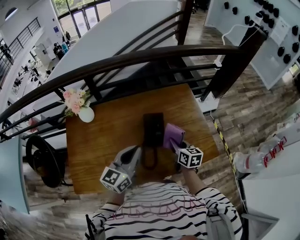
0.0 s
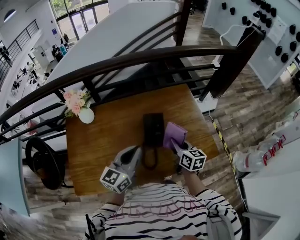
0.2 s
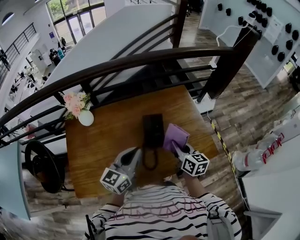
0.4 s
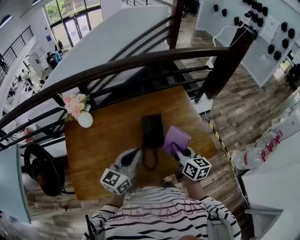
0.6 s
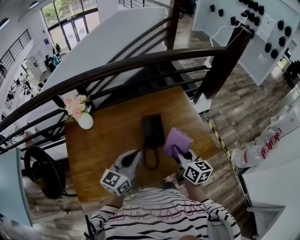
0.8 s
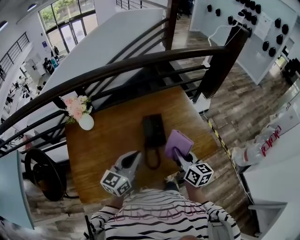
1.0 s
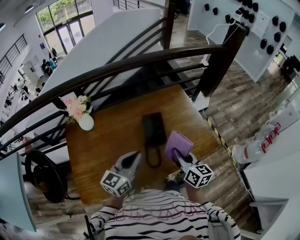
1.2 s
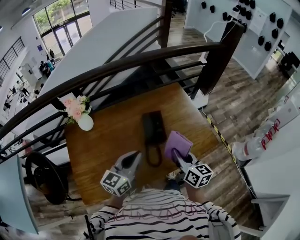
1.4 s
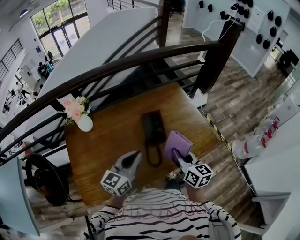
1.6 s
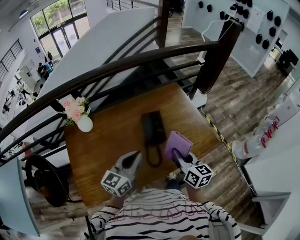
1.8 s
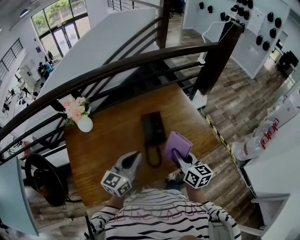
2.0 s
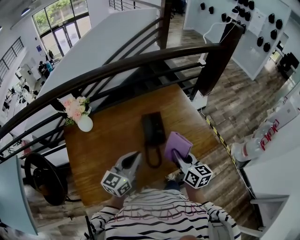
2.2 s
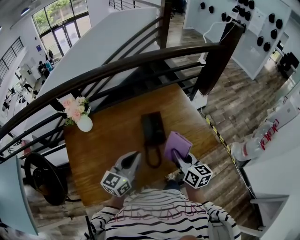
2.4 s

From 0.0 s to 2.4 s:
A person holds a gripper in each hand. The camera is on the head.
From 0.0 s to 1.2 s: The right gripper shifts some 15 cm backward and upward. The left gripper is displaced backward by about 5 cm.
From 1.2 s to 2.4 s: The two grippers keep their place.

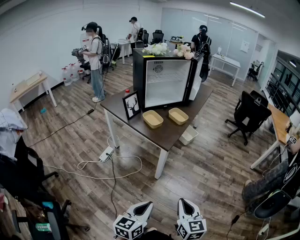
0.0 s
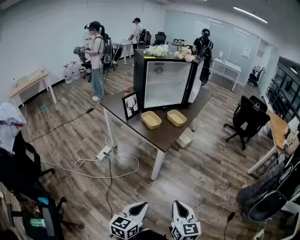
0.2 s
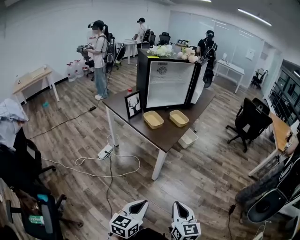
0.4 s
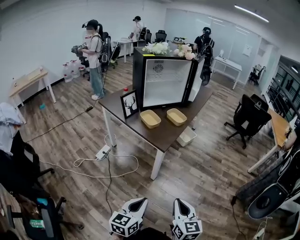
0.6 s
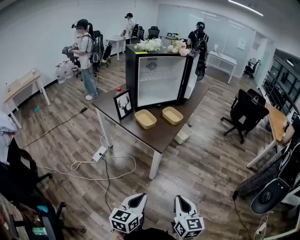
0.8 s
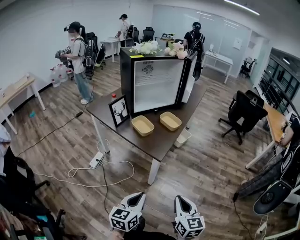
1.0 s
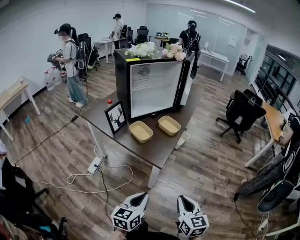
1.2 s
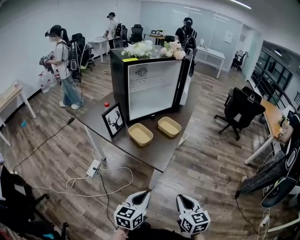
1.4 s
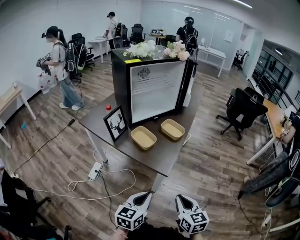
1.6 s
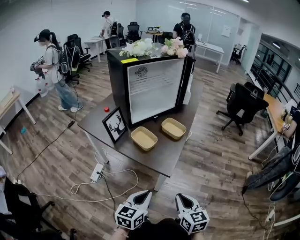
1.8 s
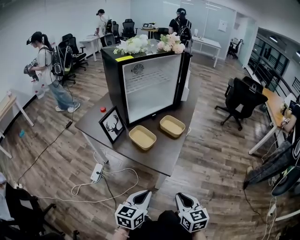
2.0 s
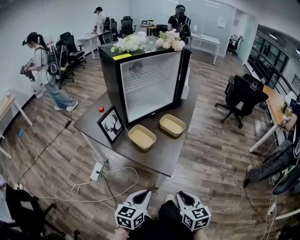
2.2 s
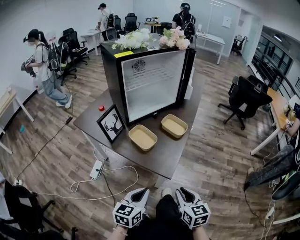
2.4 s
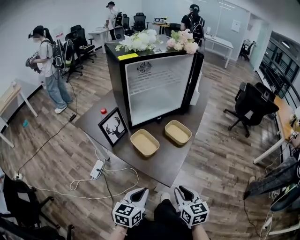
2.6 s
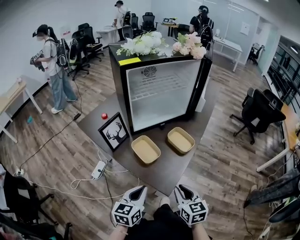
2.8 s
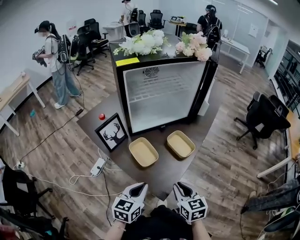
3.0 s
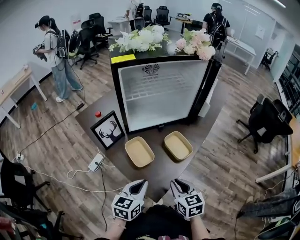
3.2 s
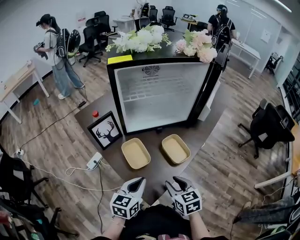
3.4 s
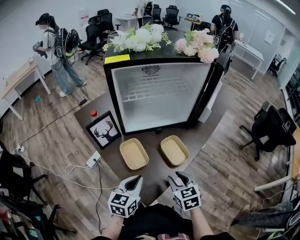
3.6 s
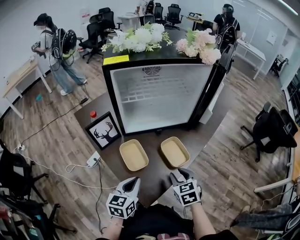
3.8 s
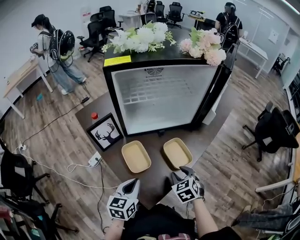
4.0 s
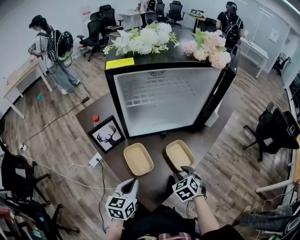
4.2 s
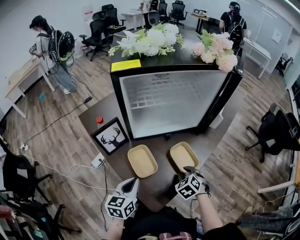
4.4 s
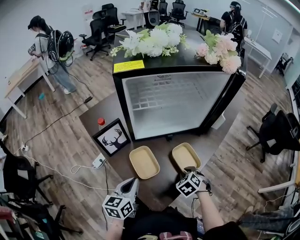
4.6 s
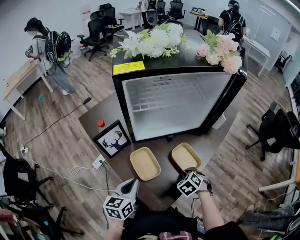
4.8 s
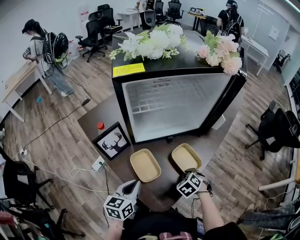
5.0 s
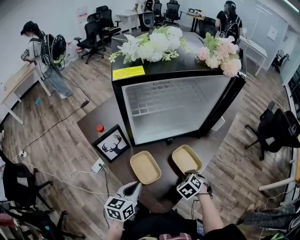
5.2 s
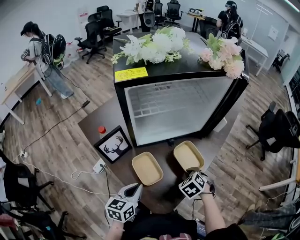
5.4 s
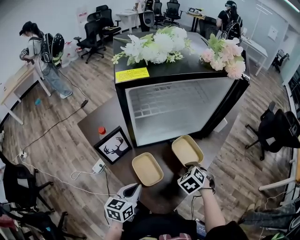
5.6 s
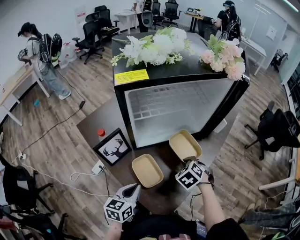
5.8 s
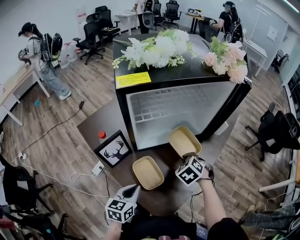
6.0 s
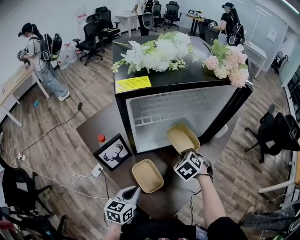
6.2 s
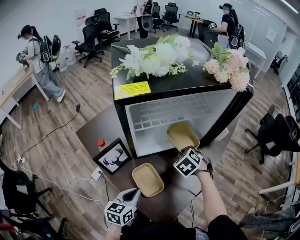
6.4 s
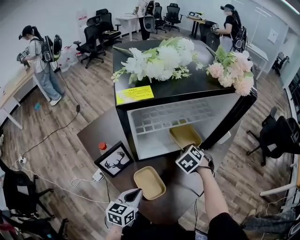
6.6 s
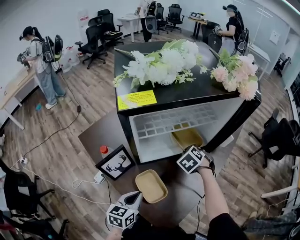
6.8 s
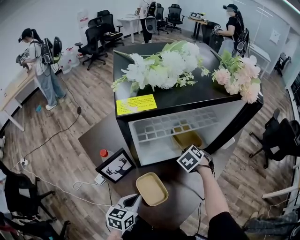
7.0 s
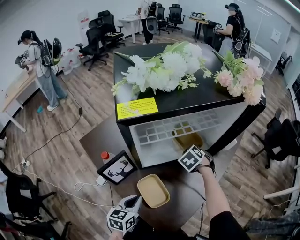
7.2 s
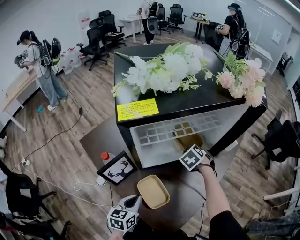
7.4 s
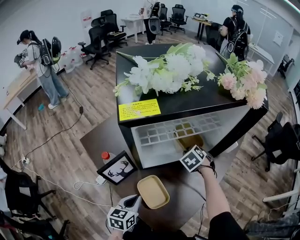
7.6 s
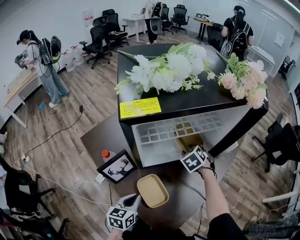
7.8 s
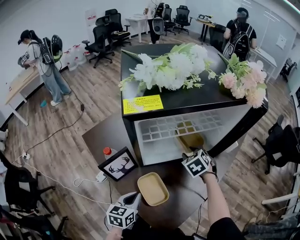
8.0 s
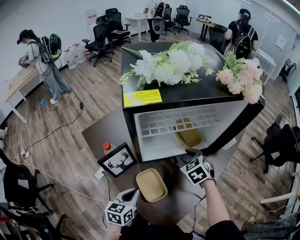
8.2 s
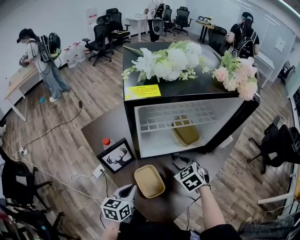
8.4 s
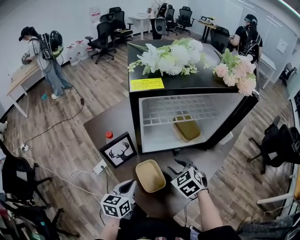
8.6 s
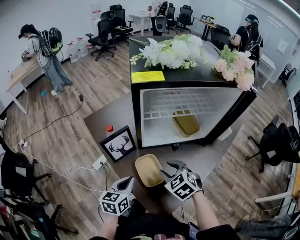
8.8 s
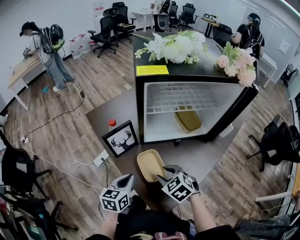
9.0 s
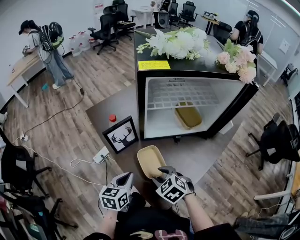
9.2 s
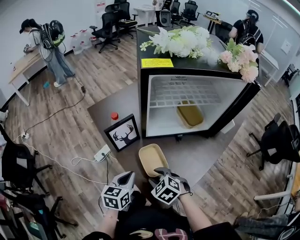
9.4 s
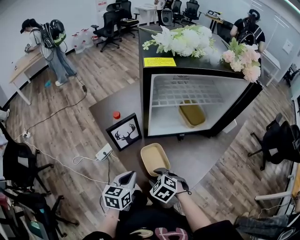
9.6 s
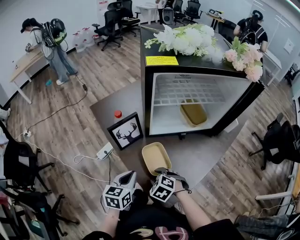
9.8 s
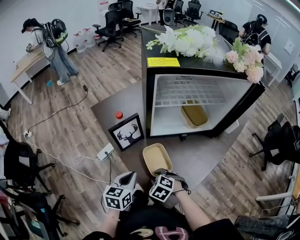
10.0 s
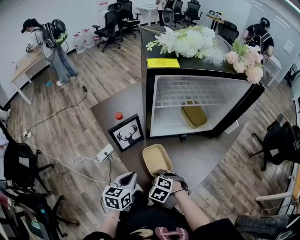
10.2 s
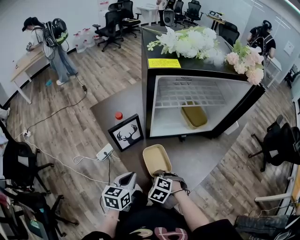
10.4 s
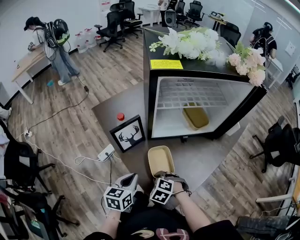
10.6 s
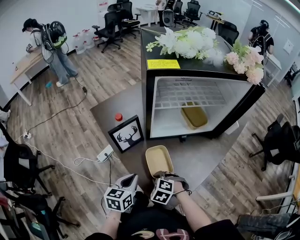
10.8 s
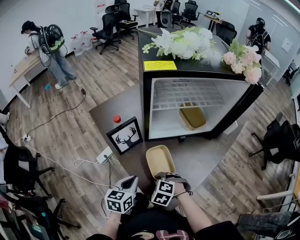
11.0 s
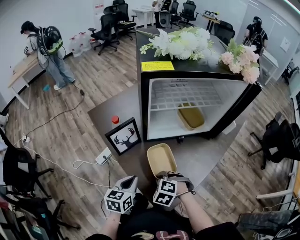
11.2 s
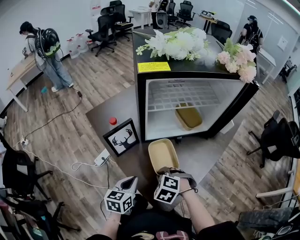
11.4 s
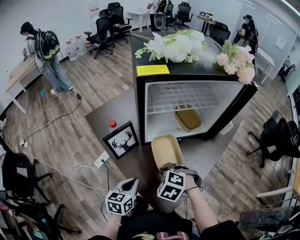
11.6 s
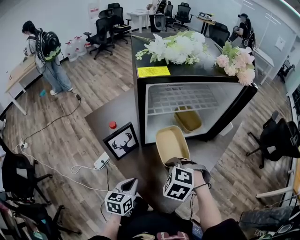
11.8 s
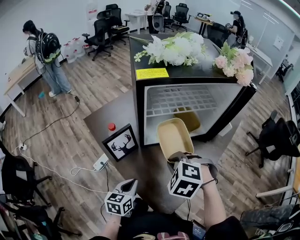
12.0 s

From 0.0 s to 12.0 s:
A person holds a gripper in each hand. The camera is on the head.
From 0.0 s to 1.6 s: Both grippers travel together forward, some 25 cm.
From 1.6 s to 3.0 s: The grippers both shift forward by roughly 25 cm.
From 3.0 s to 4.4 s: The left gripper shifts roughly 10 cm forward. Meanwhile the right gripper shifts some 20 cm forward and downward, and rotates roughly 50 degrees.
From 4.4 s to 6.0 s: The right gripper is displaced forward, upward and to the left by approximately 15 cm.
From 6.0 s to 7.6 s: The right gripper is displaced forward by approximately 15 cm, while the left gripper changes place by roughly 5 cm.
From 7.6 s to 9.0 s: The left gripper moves about 5 cm; the right gripper moves about 30 cm, and rotates roughly 30 degrees.
From 9.0 s to 10.4 s: The right gripper goes roughly 10 cm downward and to the left, and turns by roughly 30 degrees.
From 10.4 s to 12.0 s: The right gripper travels upward by about 20 cm.

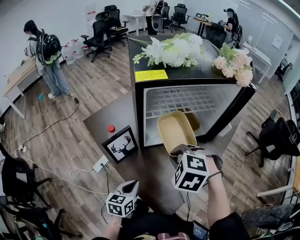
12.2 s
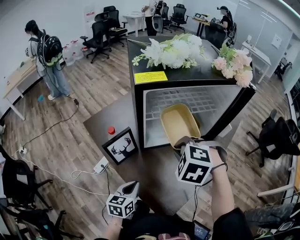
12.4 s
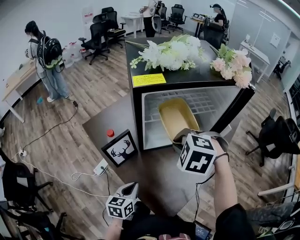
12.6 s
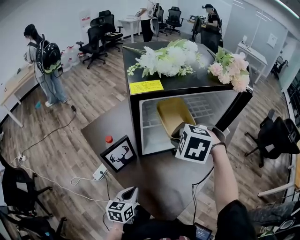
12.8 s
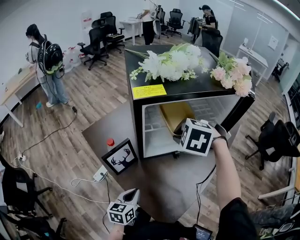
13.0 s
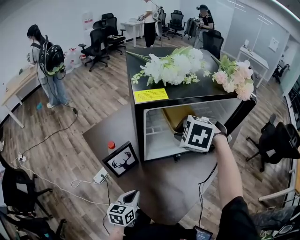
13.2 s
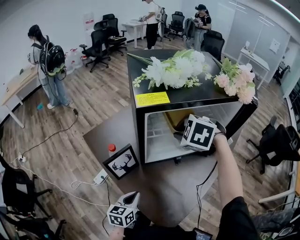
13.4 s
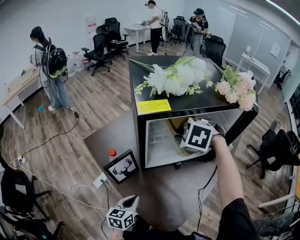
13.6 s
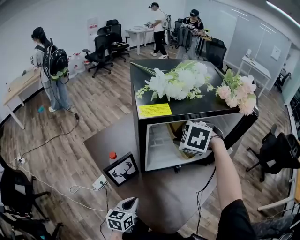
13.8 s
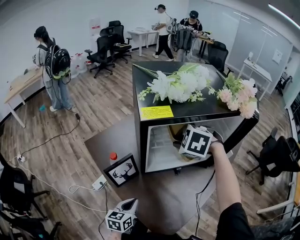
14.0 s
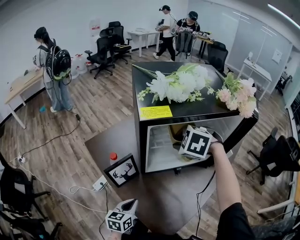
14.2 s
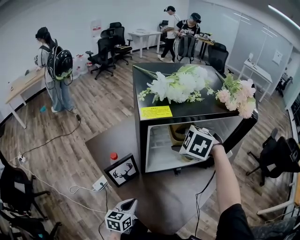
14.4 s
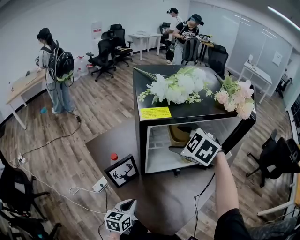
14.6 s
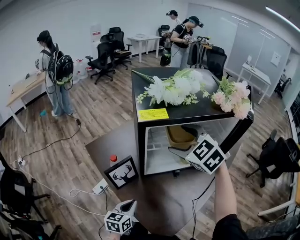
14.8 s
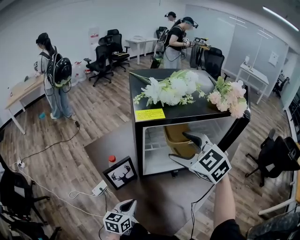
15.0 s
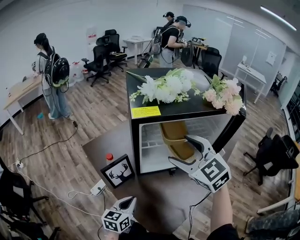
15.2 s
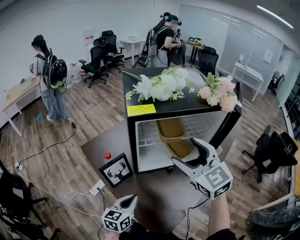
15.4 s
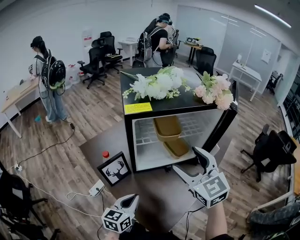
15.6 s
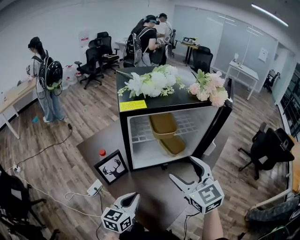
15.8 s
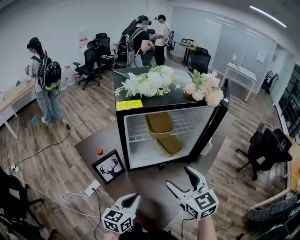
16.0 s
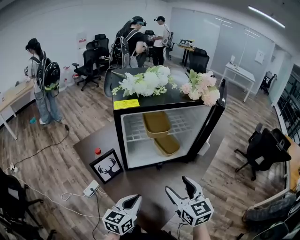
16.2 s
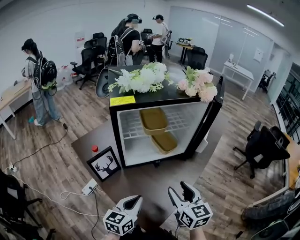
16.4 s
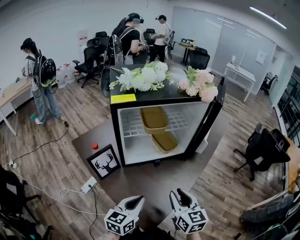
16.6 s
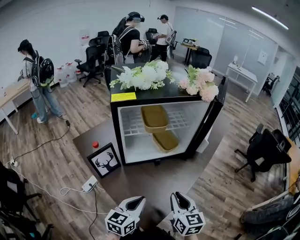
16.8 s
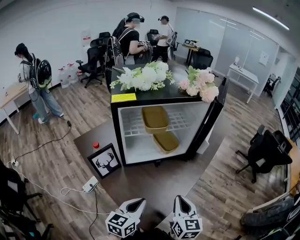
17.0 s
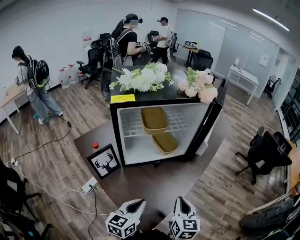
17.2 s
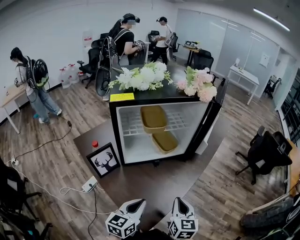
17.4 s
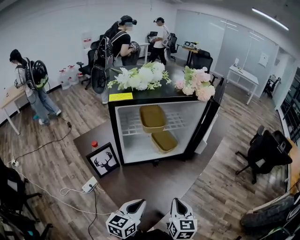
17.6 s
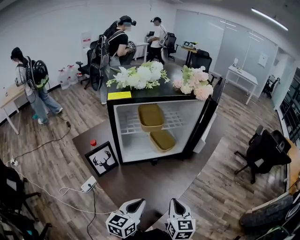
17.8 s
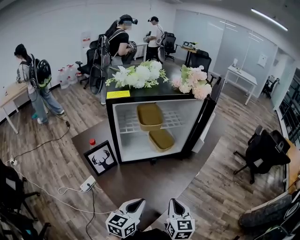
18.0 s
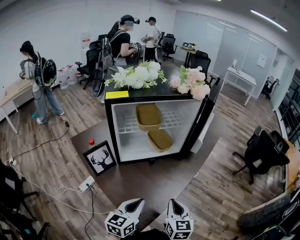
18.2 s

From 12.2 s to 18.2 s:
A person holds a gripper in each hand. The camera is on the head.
From 12.2 s to 13.8 s: The right gripper goes some 15 cm forward.
From 13.8 s to 15.2 s: The right gripper is displaced upward and backward by some 15 cm, angles its fingers upward, by approximately 50 degrees, and opens up. Meanwhile the left gripper travels upward by about 5 cm.
From 15.2 s to 16.6 s: The left gripper shifts approximately 15 cm to the right and backward, while the right gripper moves backward, downward and to the right, some 25 cm, turns by approximately 40 degrees, and closes up.
From 16.6 s to 18.2 s: The right gripper travels downward by roughly 5 cm.

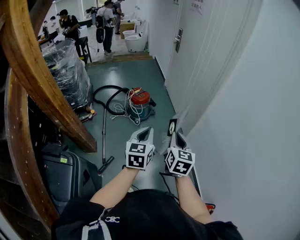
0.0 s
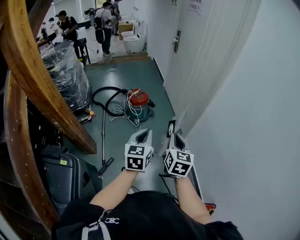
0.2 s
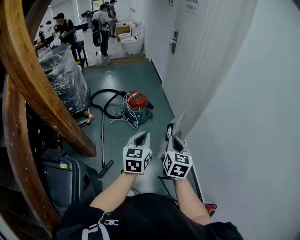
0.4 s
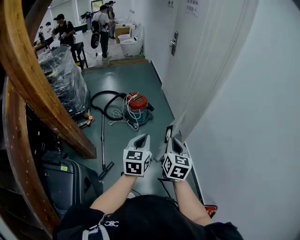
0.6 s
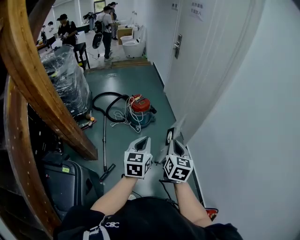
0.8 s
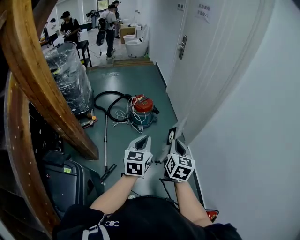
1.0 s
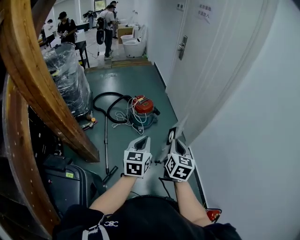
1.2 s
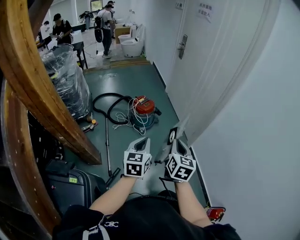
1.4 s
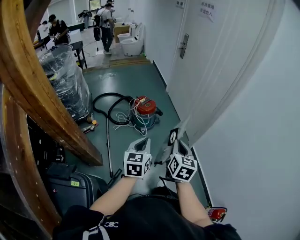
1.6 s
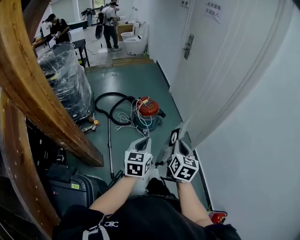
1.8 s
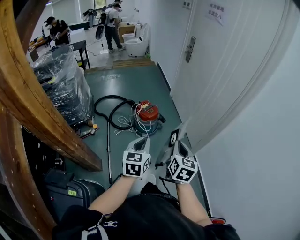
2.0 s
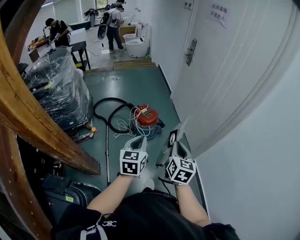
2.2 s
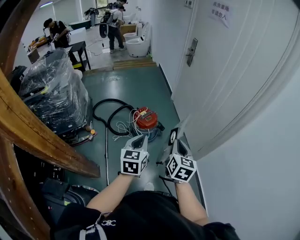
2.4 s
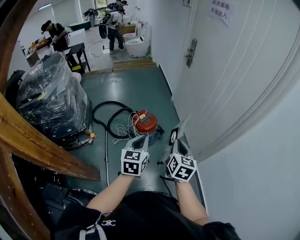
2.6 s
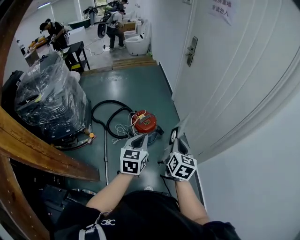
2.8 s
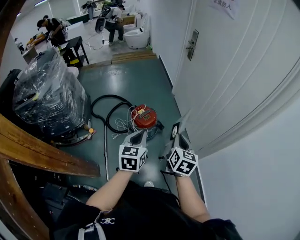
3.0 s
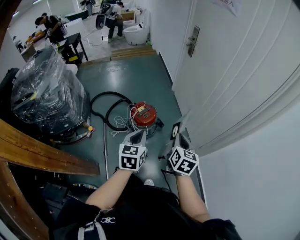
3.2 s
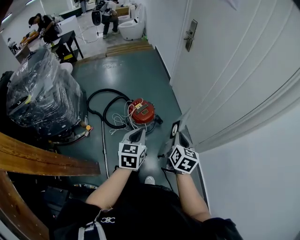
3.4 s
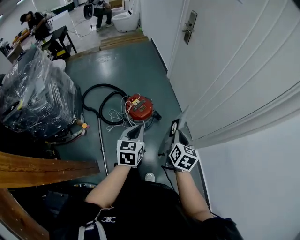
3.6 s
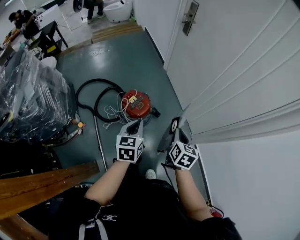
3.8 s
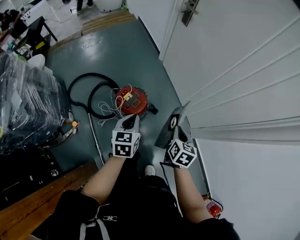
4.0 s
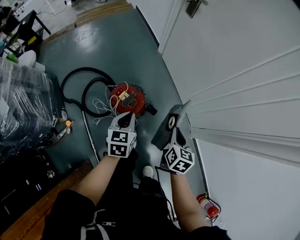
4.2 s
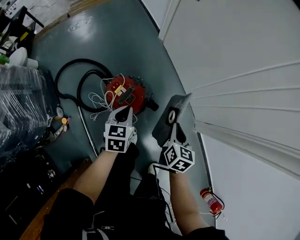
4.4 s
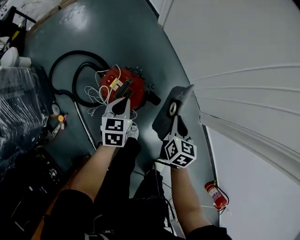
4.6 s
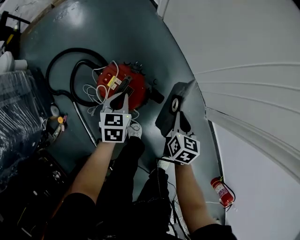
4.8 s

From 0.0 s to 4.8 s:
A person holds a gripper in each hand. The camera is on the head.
From 0.0 s to 1.6 s: The left gripper shifts some 15 cm to the left, while the right gripper heads to the left and forward, covering about 15 cm.
From 1.6 s to 3.2 s: Both grippers move forward, roughly 30 cm.
From 3.2 s to 4.8 s: The grippers both shift downward and forward by approximately 50 cm. The left gripper changes its angle by some 30 degrees. Meanwhile the right gripper turns by roughly 20 degrees.
